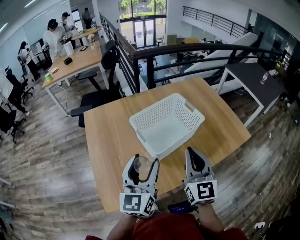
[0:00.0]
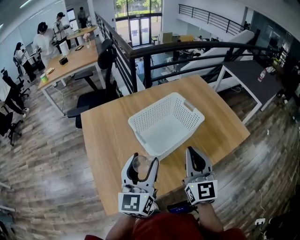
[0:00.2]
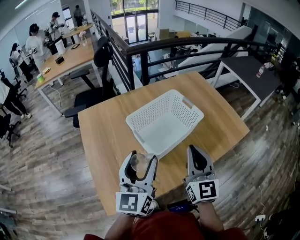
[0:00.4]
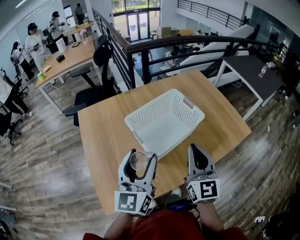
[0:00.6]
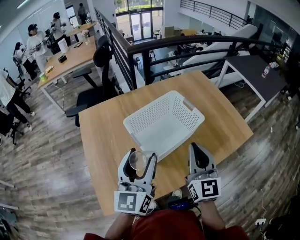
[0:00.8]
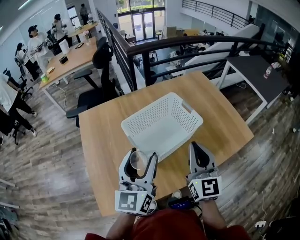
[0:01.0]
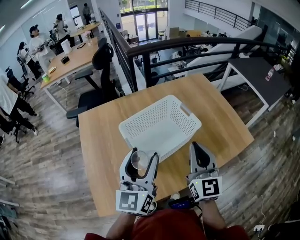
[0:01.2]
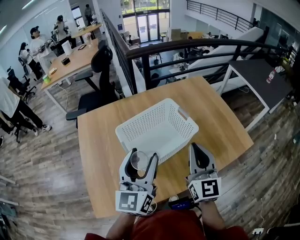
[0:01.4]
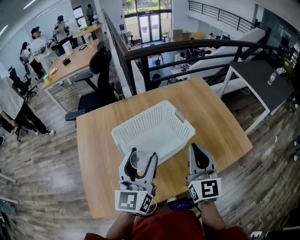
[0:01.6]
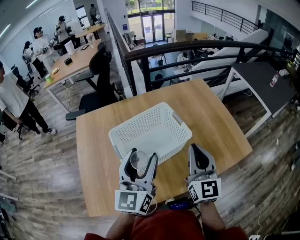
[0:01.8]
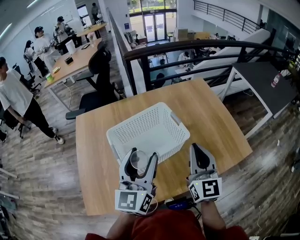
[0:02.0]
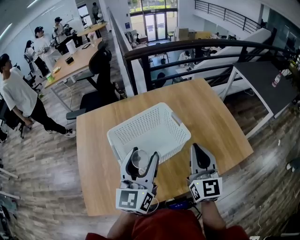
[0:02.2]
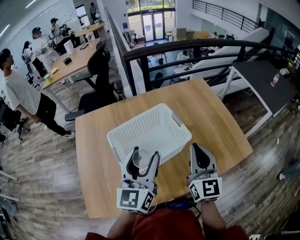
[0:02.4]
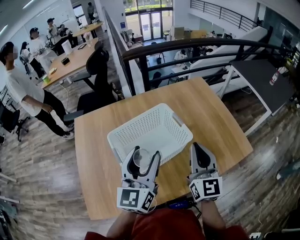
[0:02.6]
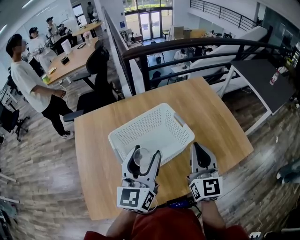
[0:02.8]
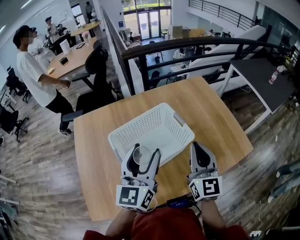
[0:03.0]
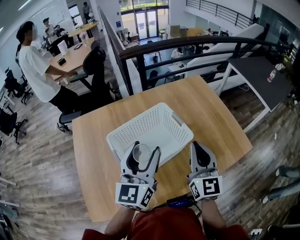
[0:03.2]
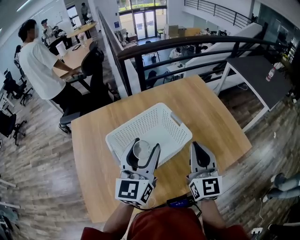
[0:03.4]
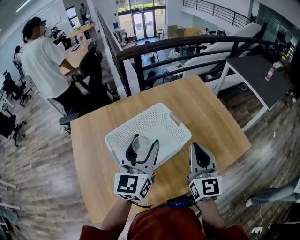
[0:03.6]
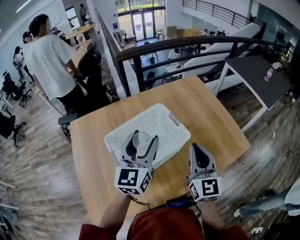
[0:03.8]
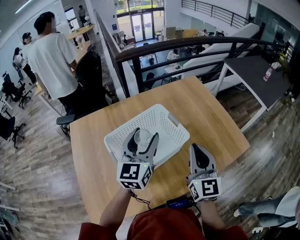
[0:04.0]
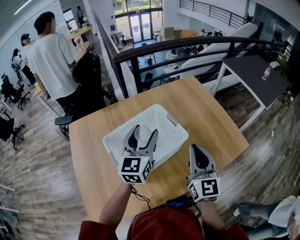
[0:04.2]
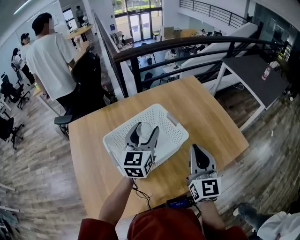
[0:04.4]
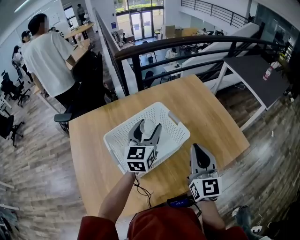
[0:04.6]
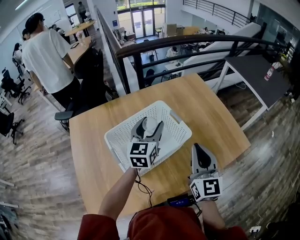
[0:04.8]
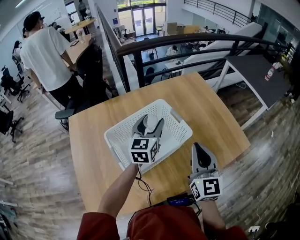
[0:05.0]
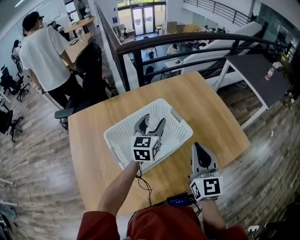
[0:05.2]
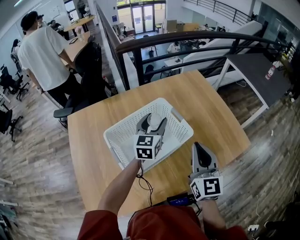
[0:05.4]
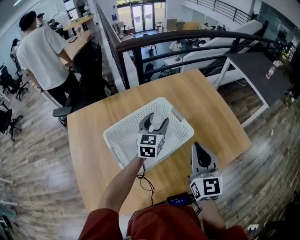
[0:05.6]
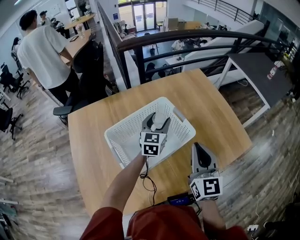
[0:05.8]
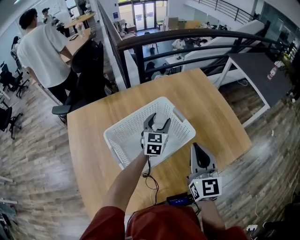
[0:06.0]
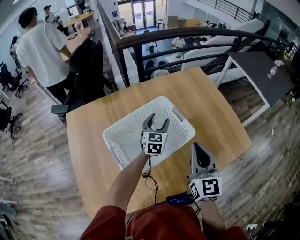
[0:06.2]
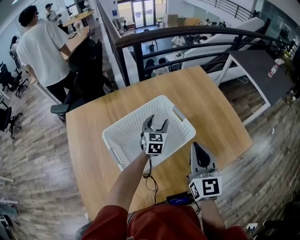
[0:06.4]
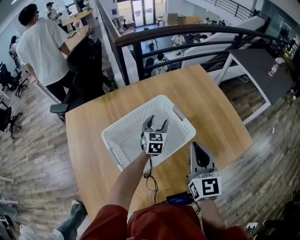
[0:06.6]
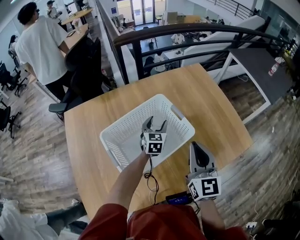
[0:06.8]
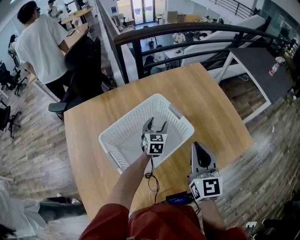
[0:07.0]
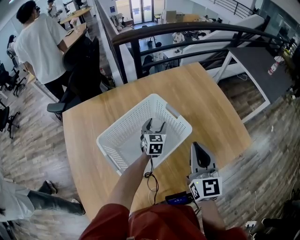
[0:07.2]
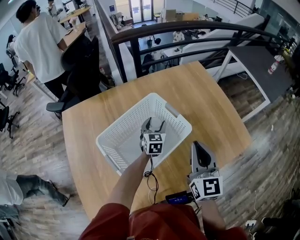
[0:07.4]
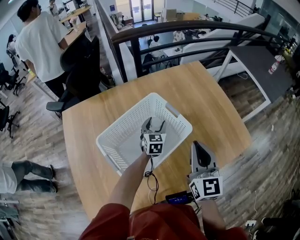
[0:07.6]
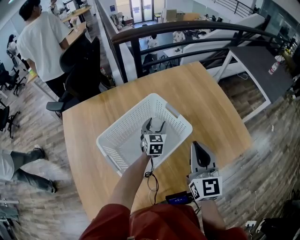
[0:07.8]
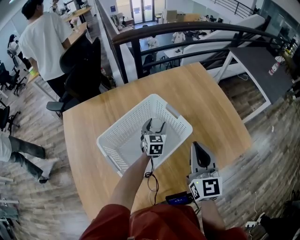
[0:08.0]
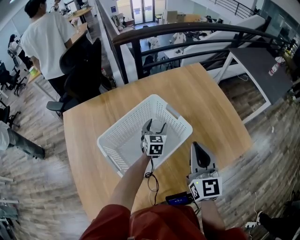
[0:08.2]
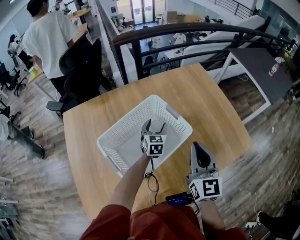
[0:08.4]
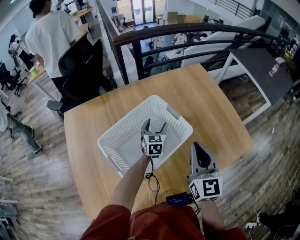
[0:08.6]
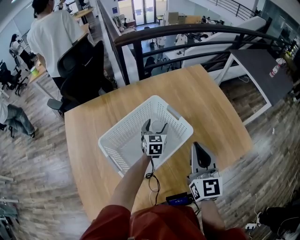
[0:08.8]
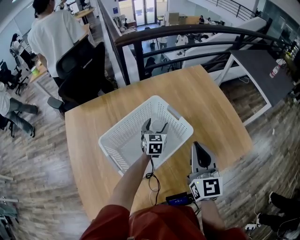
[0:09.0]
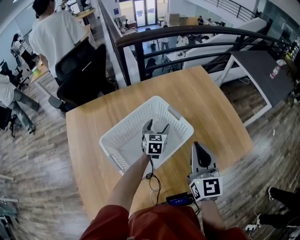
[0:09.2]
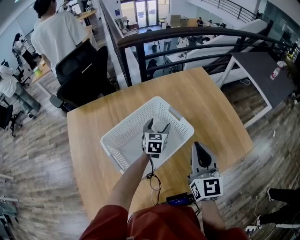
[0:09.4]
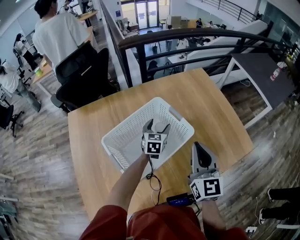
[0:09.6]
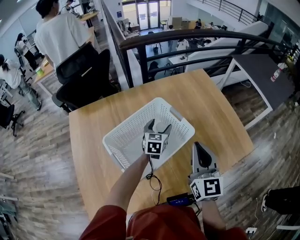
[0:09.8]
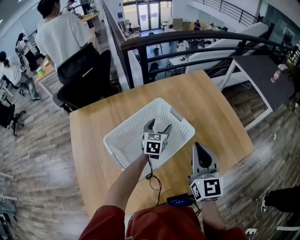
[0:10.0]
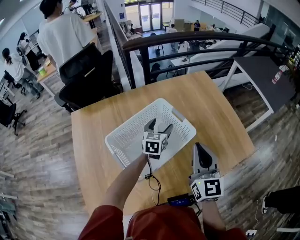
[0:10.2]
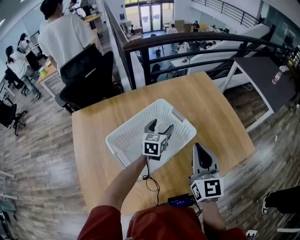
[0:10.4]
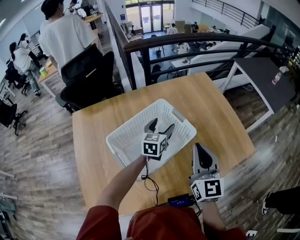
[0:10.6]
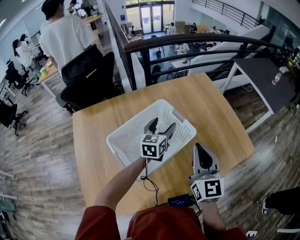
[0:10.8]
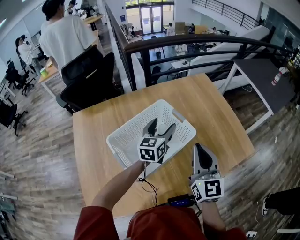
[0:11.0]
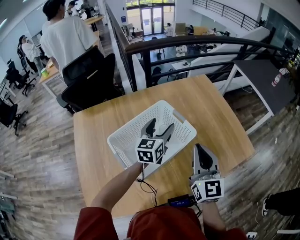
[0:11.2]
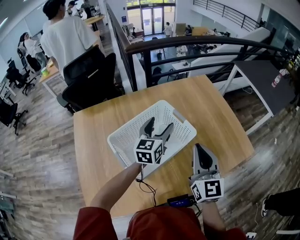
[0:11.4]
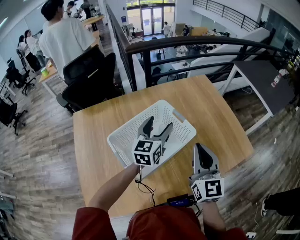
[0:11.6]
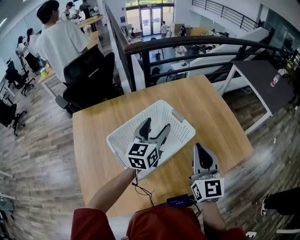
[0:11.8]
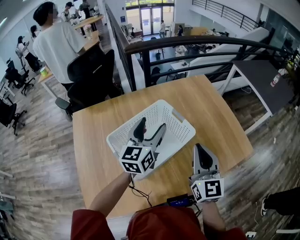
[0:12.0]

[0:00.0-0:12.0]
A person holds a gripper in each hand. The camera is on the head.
0:00.0 to 0:01.6: The left gripper moves forward and to the right, approximately 15 cm; the right gripper heads to the right and forward, covering approximately 15 cm.
0:01.6 to 0:03.0: There are only small adjustments of the grippers.
0:03.0 to 0:04.4: The left gripper goes roughly 10 cm forward.
0:04.4 to 0:06.0: The left gripper goes roughly 15 cm downward and forward.
0:06.0 to 0:07.6: The left gripper moves downward, some 10 cm.
0:07.6 to 0:09.0: The two grippers keep their place.
0:09.0 to 0:10.4: The left gripper shifts roughly 5 cm upward.
0:10.4 to 0:12.0: The left gripper moves upward and backward, about 15 cm.

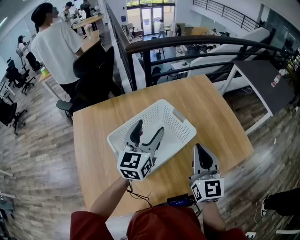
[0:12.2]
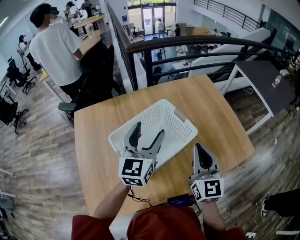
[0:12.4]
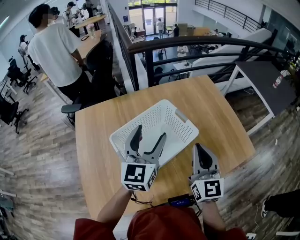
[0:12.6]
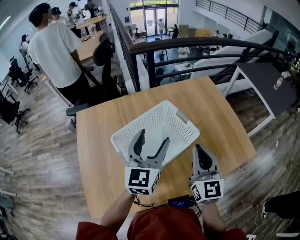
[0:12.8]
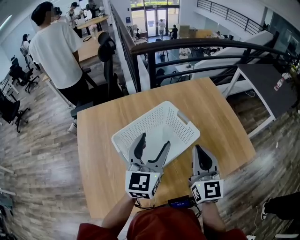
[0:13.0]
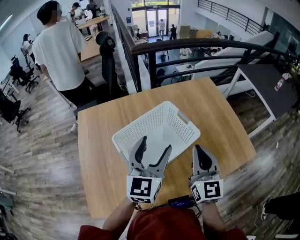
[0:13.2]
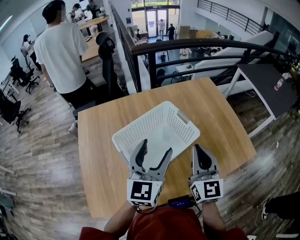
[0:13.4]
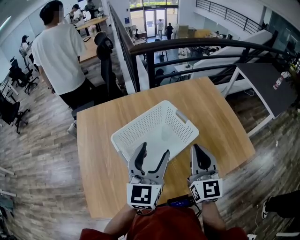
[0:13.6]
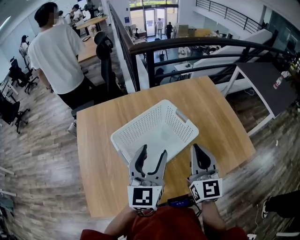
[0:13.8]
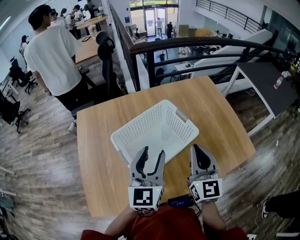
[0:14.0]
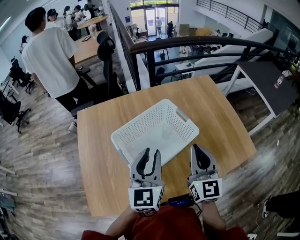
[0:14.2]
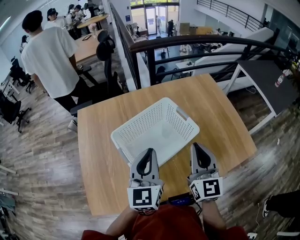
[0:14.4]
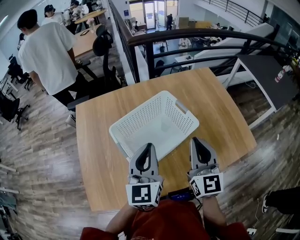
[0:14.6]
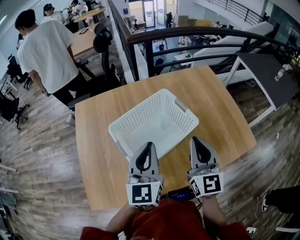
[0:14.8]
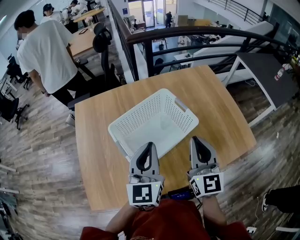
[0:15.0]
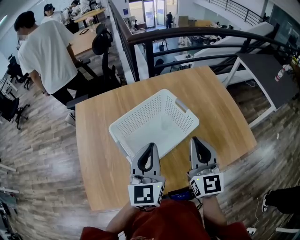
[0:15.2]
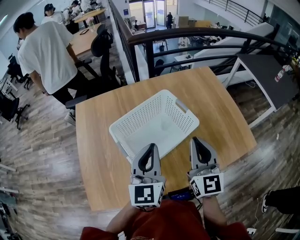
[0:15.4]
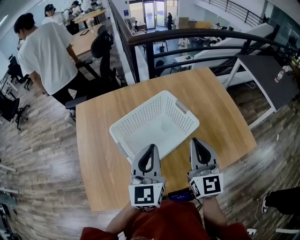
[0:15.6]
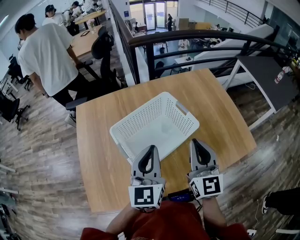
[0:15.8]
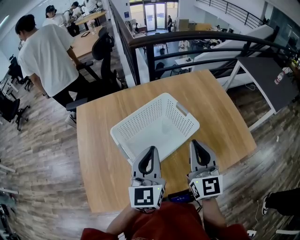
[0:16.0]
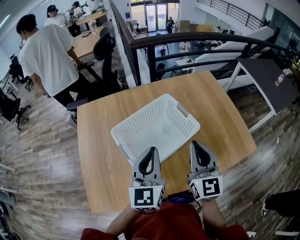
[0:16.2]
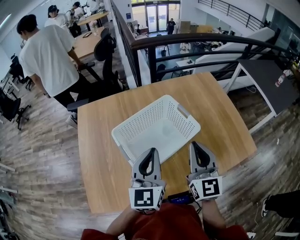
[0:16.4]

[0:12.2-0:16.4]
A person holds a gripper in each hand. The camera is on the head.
0:12.2 to 0:13.6: The left gripper shifts roughly 10 cm backward.
0:13.6 to 0:15.0: The left gripper closes.
0:15.0 to 0:16.4: Neither gripper changes place.

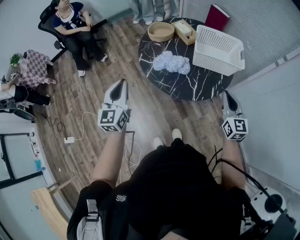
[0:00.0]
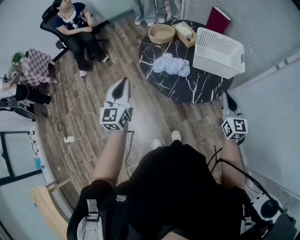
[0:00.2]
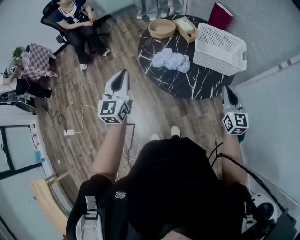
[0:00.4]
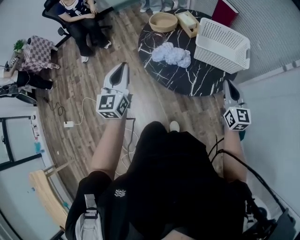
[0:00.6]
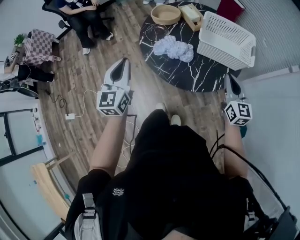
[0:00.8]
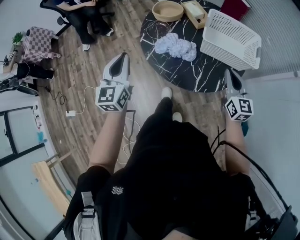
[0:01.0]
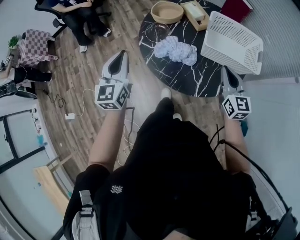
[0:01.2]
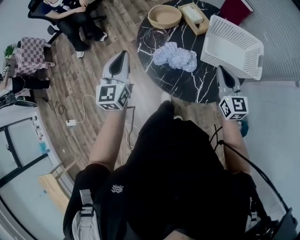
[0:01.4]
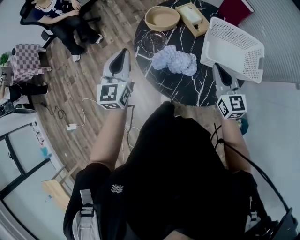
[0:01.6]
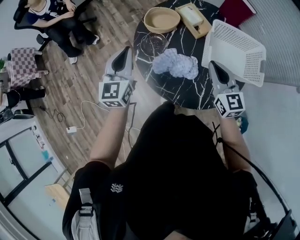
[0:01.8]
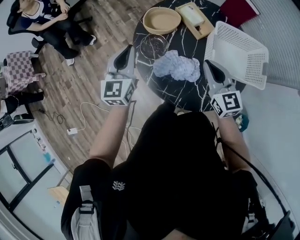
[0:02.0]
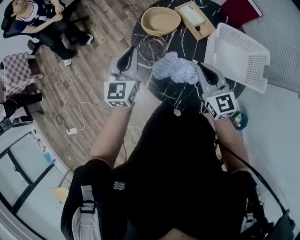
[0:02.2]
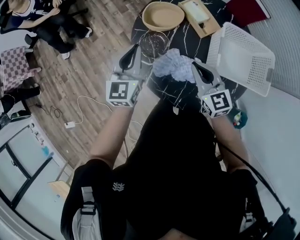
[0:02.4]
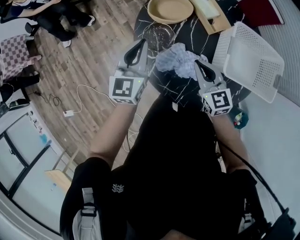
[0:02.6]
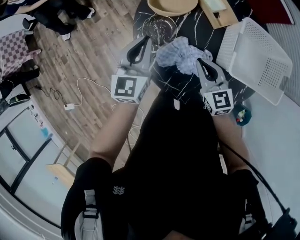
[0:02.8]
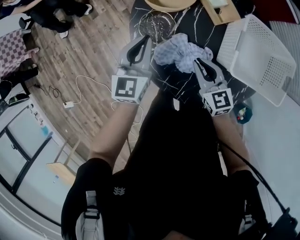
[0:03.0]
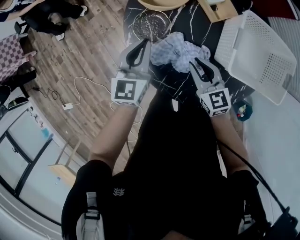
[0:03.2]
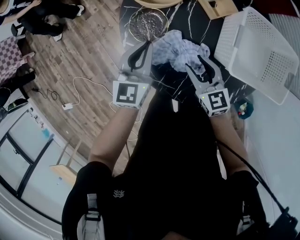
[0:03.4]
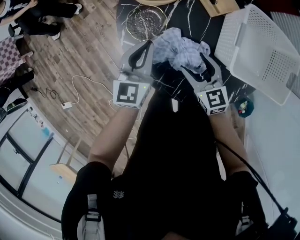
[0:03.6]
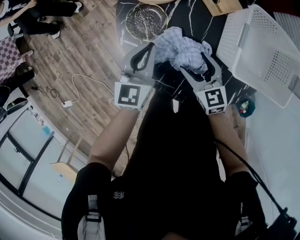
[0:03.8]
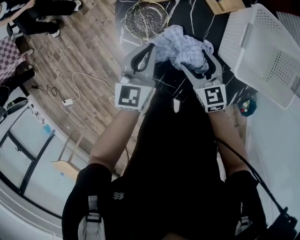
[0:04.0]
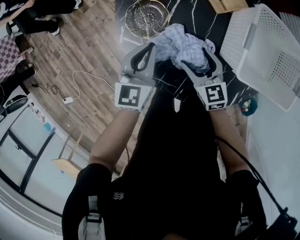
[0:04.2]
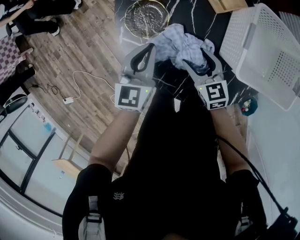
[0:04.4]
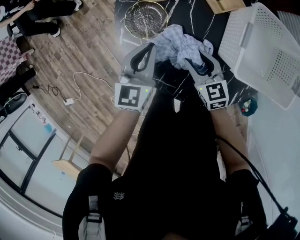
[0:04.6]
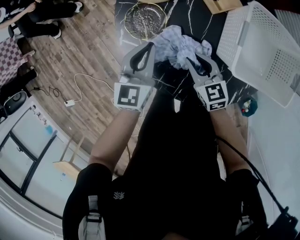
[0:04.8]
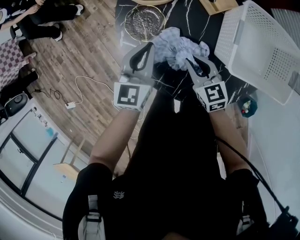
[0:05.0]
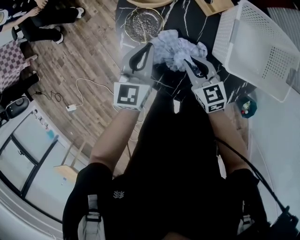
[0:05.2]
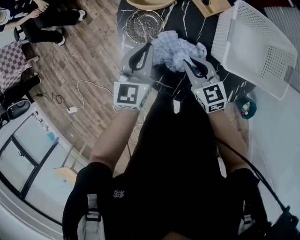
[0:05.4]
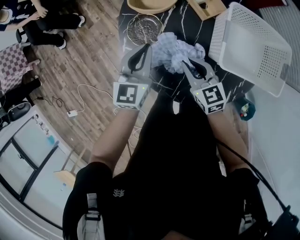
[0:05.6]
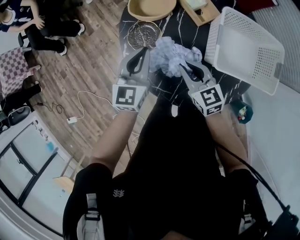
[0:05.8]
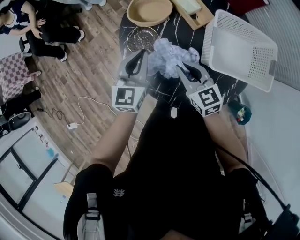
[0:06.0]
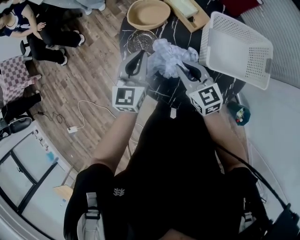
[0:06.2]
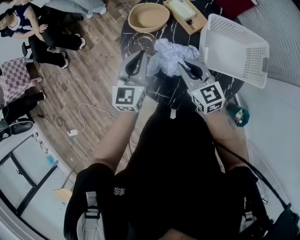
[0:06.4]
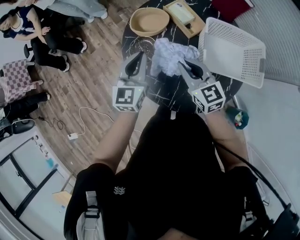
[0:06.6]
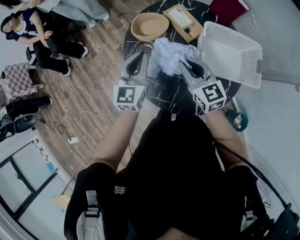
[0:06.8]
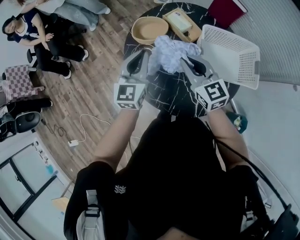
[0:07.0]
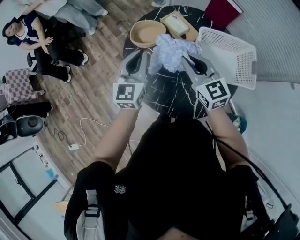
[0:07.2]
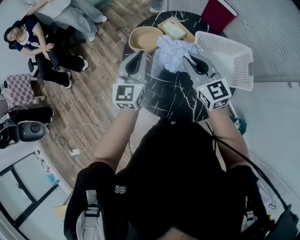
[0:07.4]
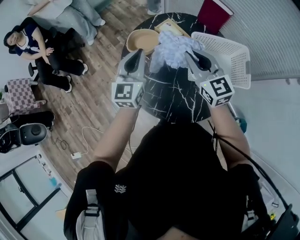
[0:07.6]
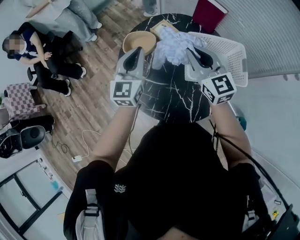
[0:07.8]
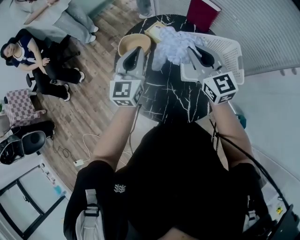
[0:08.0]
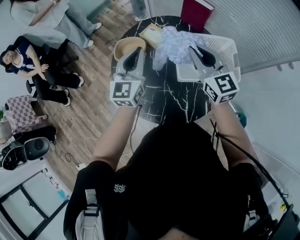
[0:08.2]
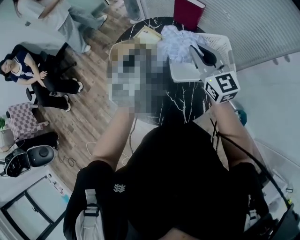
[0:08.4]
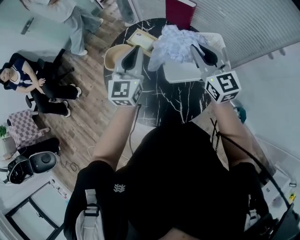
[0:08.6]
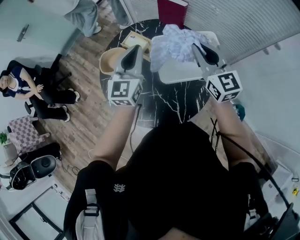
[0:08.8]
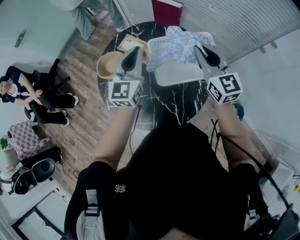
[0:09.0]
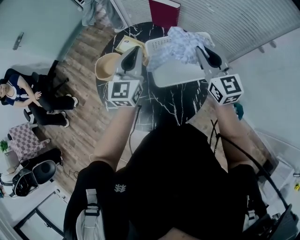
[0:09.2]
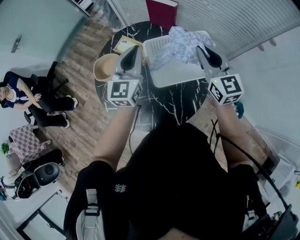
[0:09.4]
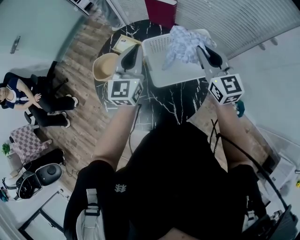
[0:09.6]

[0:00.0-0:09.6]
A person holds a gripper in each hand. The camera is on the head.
0:00.0 to 0:01.6: The grippers both shift forward by approximately 25 cm.
0:01.6 to 0:03.2: The left gripper travels downward and forward by roughly 20 cm. The right gripper shifts roughly 25 cm downward, to the left and forward, and swivels some 20 degrees.
0:03.2 to 0:04.8: The right gripper shifts approximately 5 cm downward, and opens, then closes once more, while the left gripper shifts by about 5 cm.
0:04.8 to 0:06.4: Both grippers move upward, about 15 cm.
0:06.4 to 0:08.0: The two grippers go roughly 20 cm upward and to the right. The right gripper rotates approximately 20 degrees.
0:08.0 to 0:09.6: Both grippers travel together to the right, some 20 cm.
